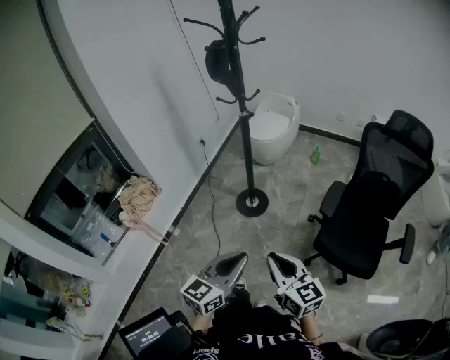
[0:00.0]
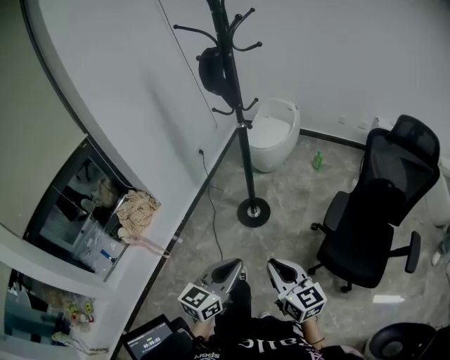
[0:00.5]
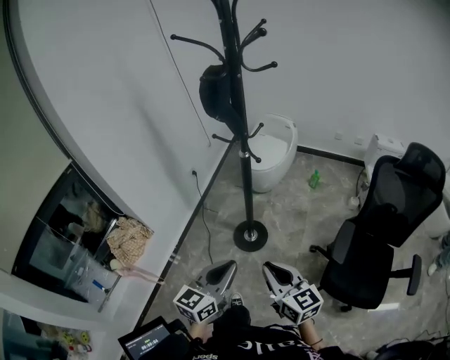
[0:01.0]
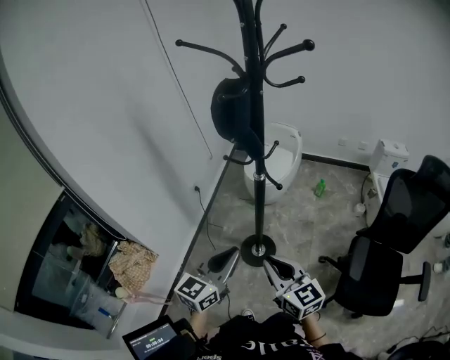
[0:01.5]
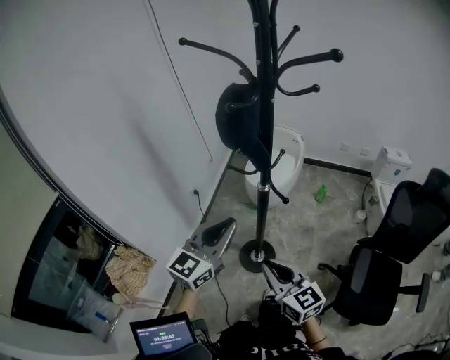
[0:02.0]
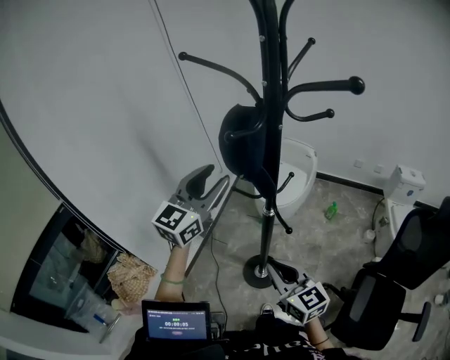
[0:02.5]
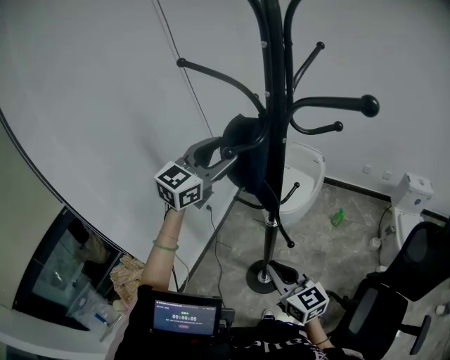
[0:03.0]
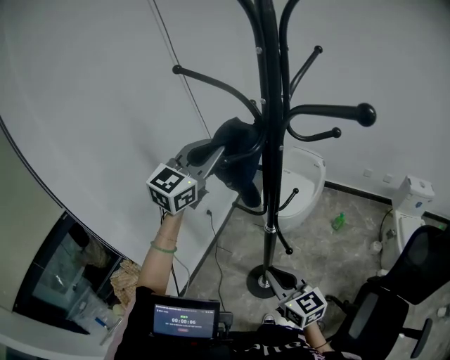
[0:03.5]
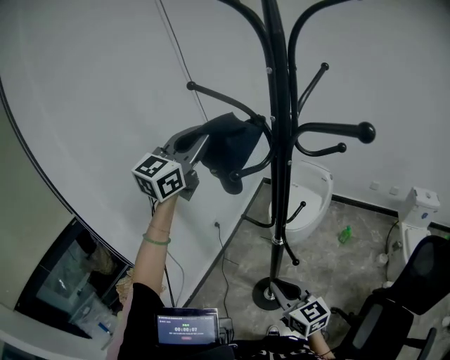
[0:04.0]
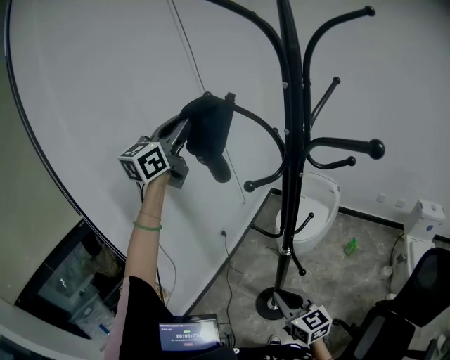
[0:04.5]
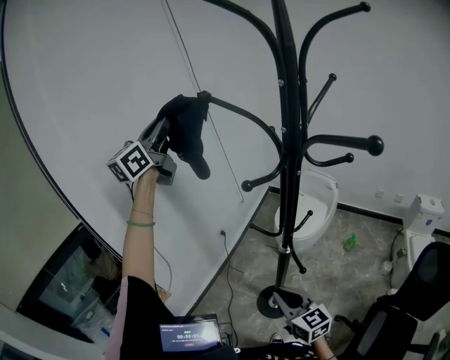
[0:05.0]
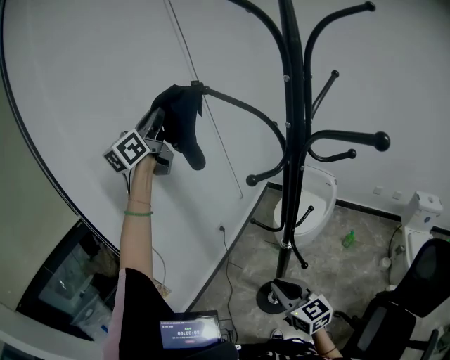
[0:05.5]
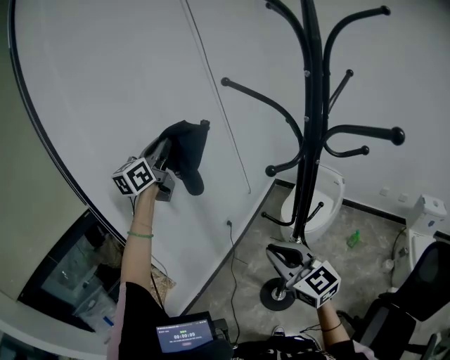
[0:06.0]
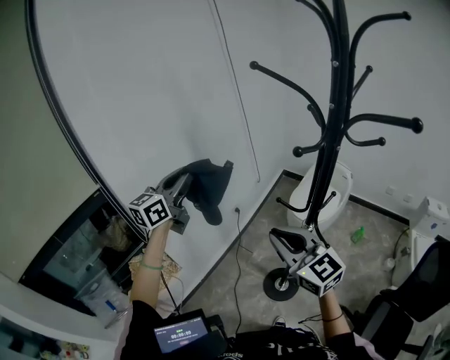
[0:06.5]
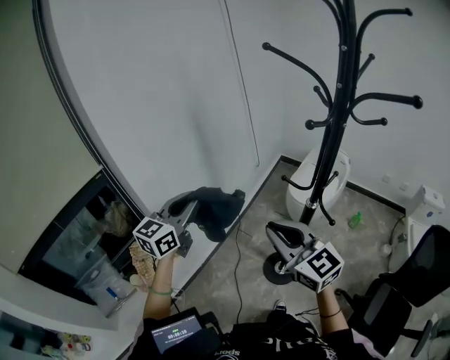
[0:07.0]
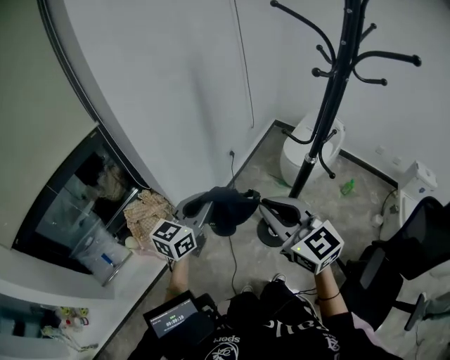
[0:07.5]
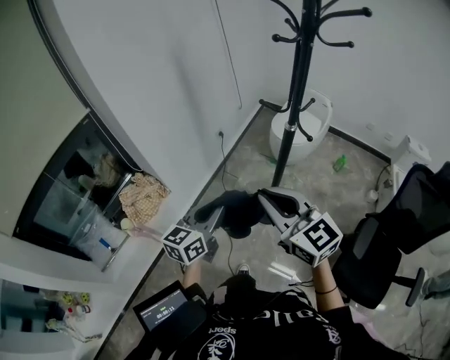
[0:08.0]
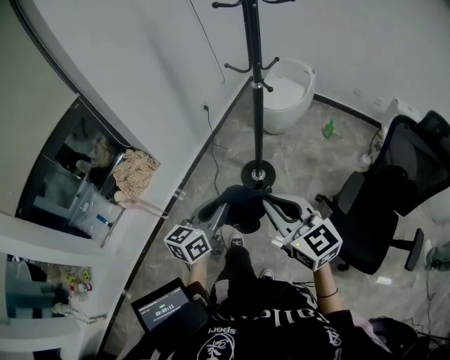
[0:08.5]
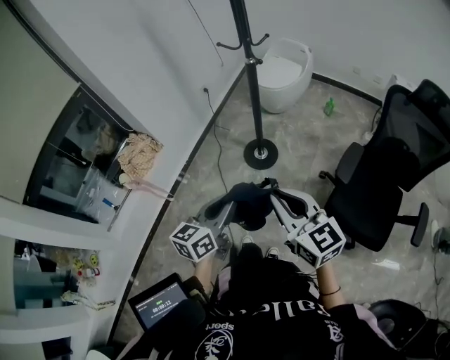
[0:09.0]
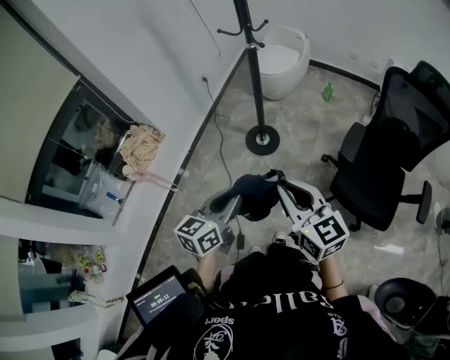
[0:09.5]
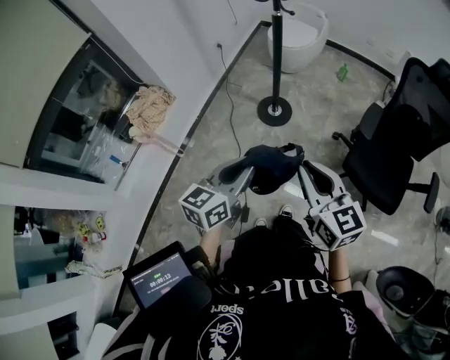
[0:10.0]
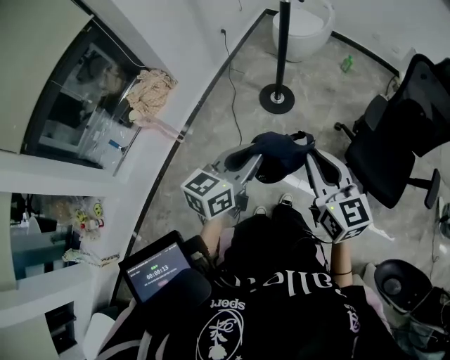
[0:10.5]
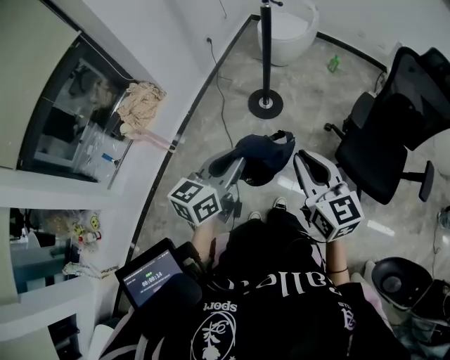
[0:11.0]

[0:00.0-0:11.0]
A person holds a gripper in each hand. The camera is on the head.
0:00.0 to 0:02.0: Both grippers are carried forward, some 50 cm.
0:02.0 to 0:03.5: The left gripper heads forward and upward, covering some 30 cm, and opens and closes again. Meanwhile the right gripper travels forward by roughly 15 cm.
0:03.5 to 0:05.5: The left gripper goes roughly 25 cm to the left and upward, and rotates roughly 30 degrees.
0:05.5 to 0:07.5: The right gripper heads to the left, upward and backward, covering roughly 20 cm, while the left gripper goes some 50 cm downward and backward, and turns by some 30 degrees.
0:07.5 to 0:09.0: Both grippers are carried backward and to the right, approximately 40 cm.
0:09.0 to 0:11.0: The left gripper goes some 10 cm backward and to the left. Meanwhile the right gripper moves backward, roughly 10 cm.

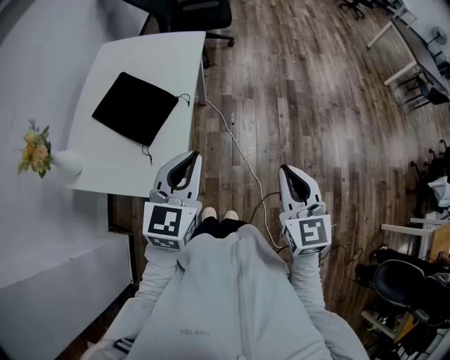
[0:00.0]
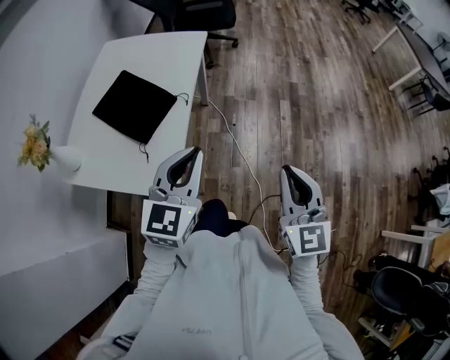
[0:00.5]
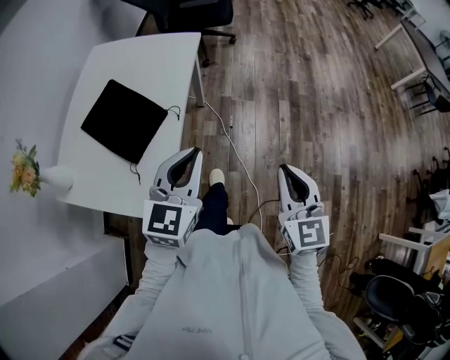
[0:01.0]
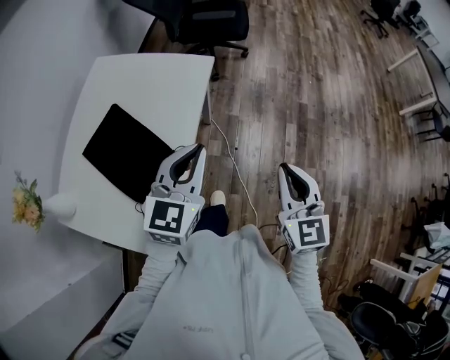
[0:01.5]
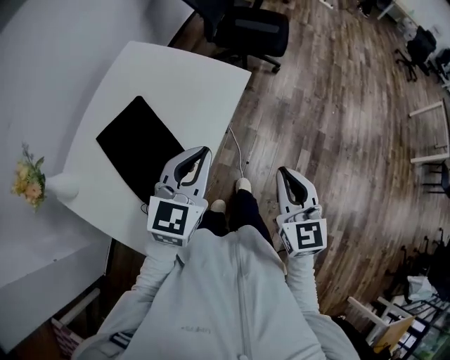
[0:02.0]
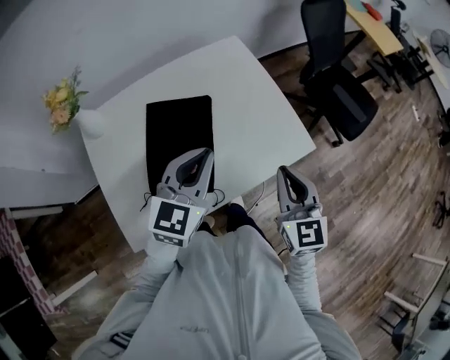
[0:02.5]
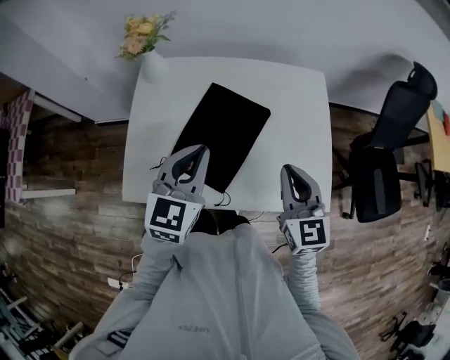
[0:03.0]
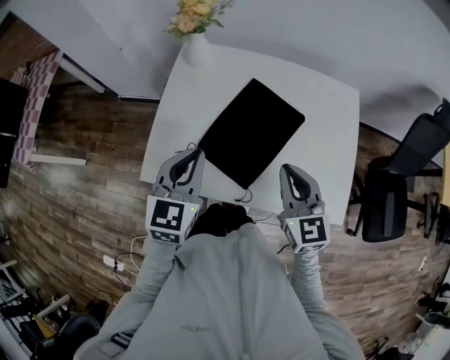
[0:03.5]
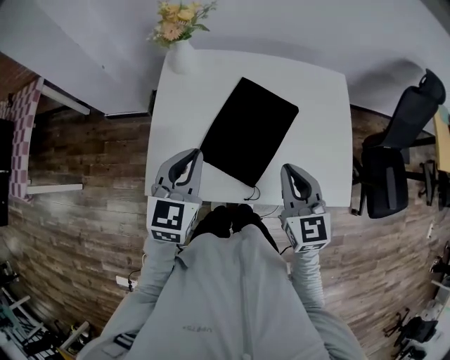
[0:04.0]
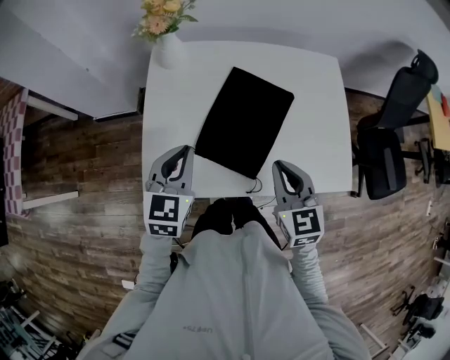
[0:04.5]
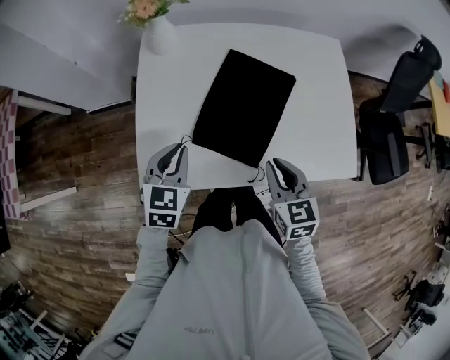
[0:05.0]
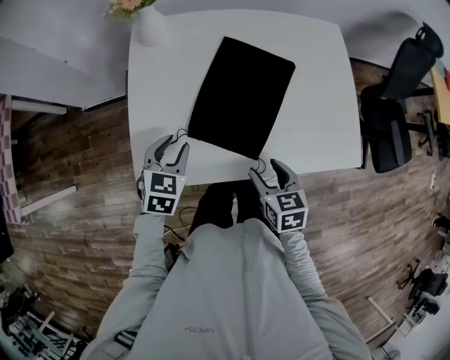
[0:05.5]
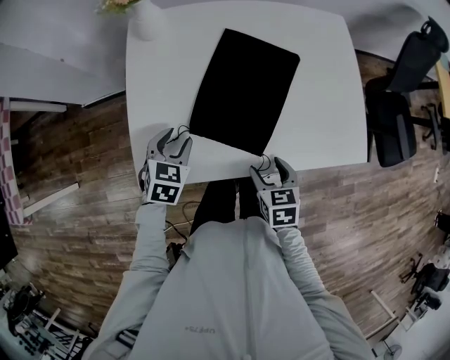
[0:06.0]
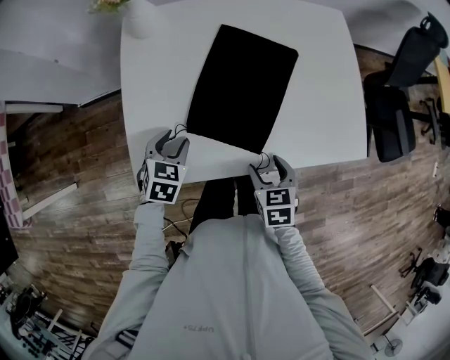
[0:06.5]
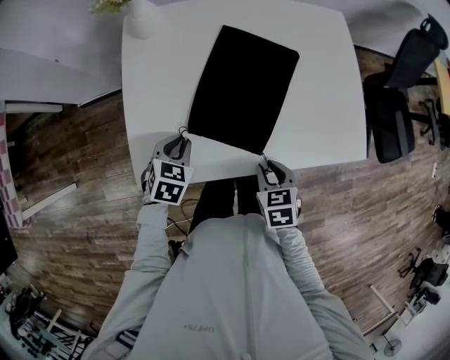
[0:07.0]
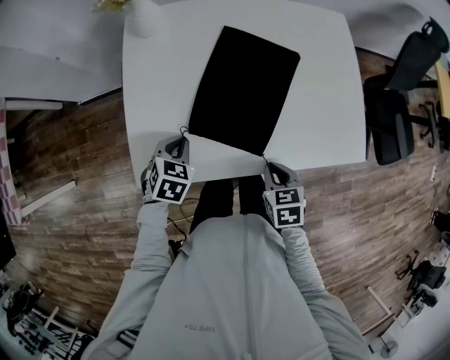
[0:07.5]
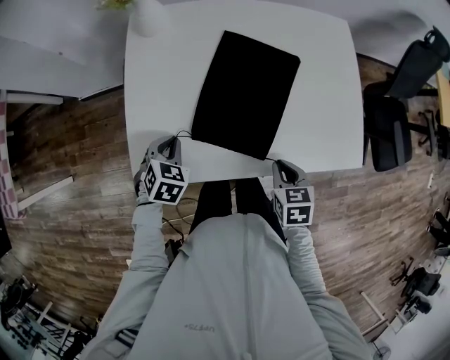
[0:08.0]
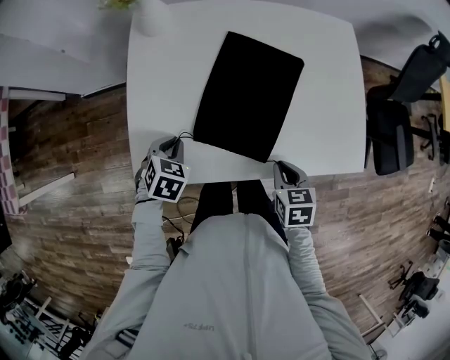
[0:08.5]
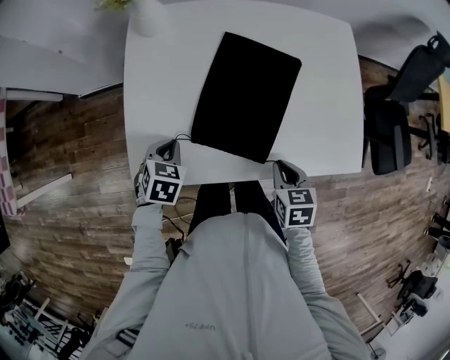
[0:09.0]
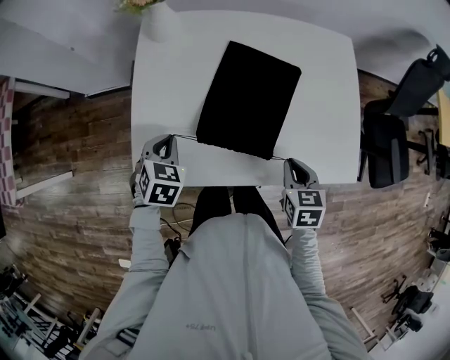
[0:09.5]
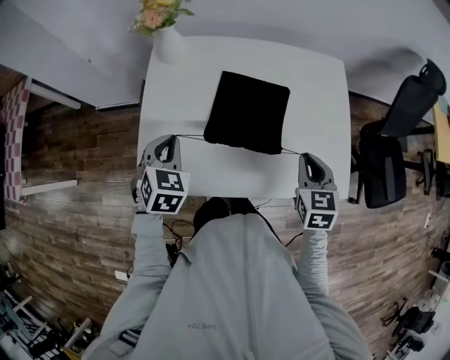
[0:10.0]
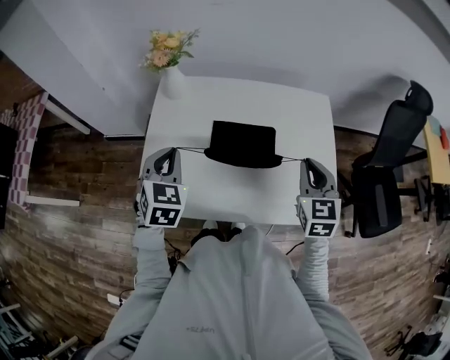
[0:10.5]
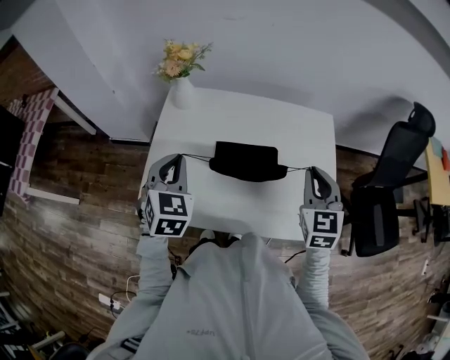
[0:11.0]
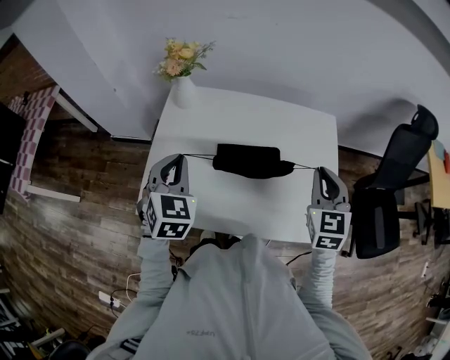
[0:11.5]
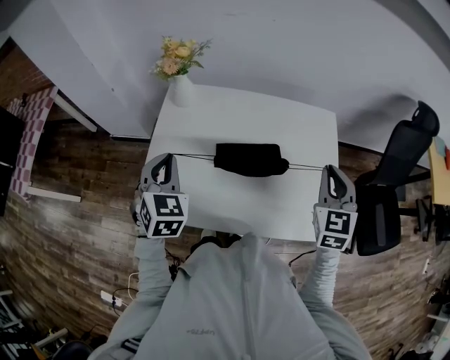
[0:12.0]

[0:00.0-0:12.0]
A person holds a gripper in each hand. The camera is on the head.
0:00.0 to 0:02.0: The two grippers go roughly 30 cm forward.
0:02.0 to 0:04.0: The right gripper shifts by some 30 cm, and changes its angle by roughly 70 degrees; the left gripper moves about 25 cm, and swivels about 70 degrees.
0:04.0 to 0:06.0: The right gripper shifts about 20 cm downward and backward, tilts its fingers some 30 degrees downward, and opens its fingers; the left gripper is displaced downward by some 20 cm, turns by roughly 30 degrees, and opens its fingers.
0:06.0 to 0:08.0: The right gripper goes some 5 cm to the right, and closes up; the left gripper closes its fingers.
0:08.0 to 0:10.0: The right gripper goes some 20 cm upward, forward and to the right, and changes its angle by about 20 degrees. Meanwhile the left gripper goes some 15 cm upward.
0:10.0 to 0:12.0: The left gripper heads upward, covering about 10 cm, while the right gripper is displaced upward, to the right and forward by about 15 cm, and rotates some 20 degrees.

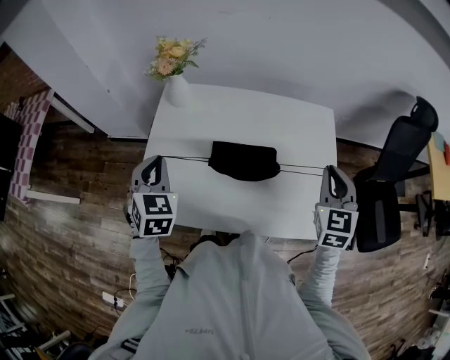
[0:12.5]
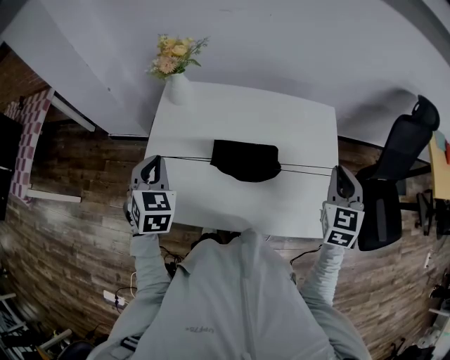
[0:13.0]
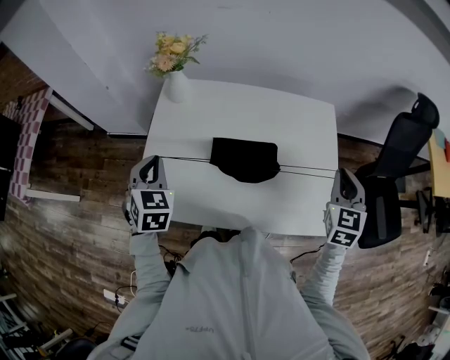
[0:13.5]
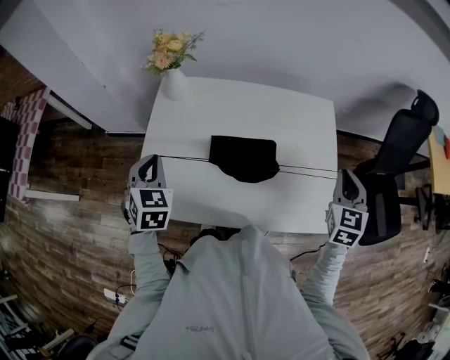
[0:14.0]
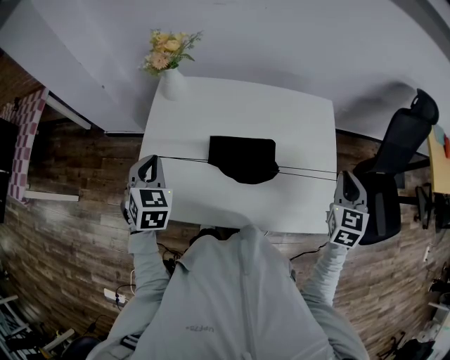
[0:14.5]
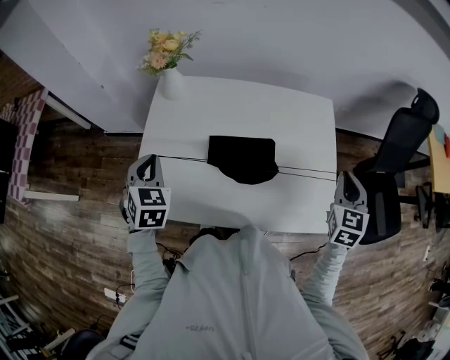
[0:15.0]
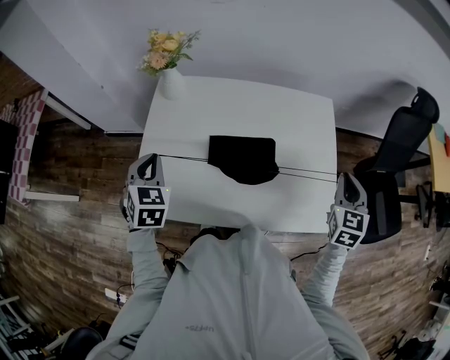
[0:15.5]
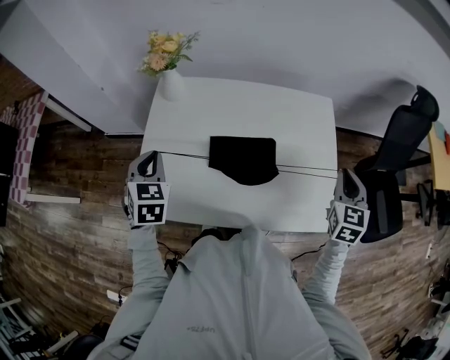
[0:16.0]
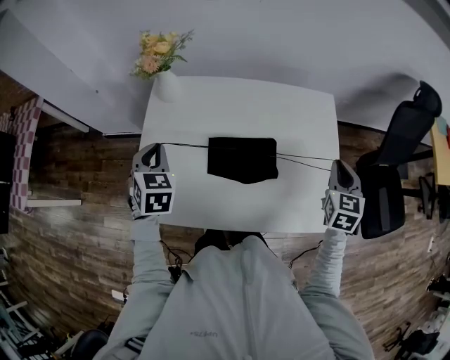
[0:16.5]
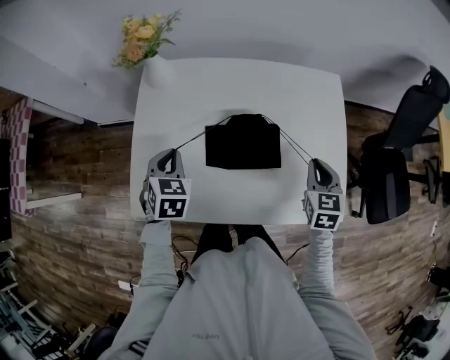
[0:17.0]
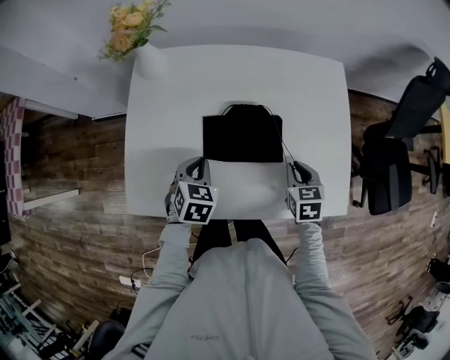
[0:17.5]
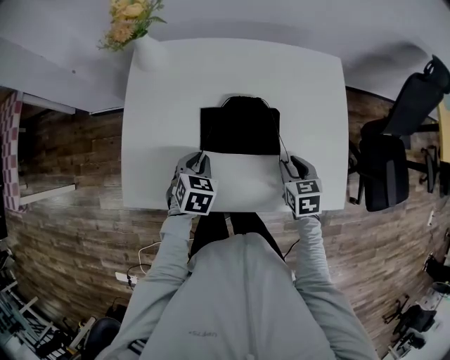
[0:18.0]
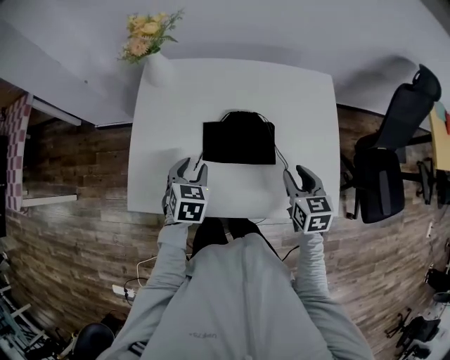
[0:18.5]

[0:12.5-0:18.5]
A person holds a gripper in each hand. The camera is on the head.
0:12.5 to 0:14.5: The right gripper moves to the right, some 5 cm.
0:14.5 to 0:16.5: The right gripper shifts by about 5 cm. The left gripper goes roughly 5 cm forward.
0:16.5 to 0:18.5: The left gripper shifts some 20 cm downward, to the right and backward, and opens up; the right gripper shifts roughly 15 cm to the left, downward and backward, turns by some 20 degrees, and opens up.
